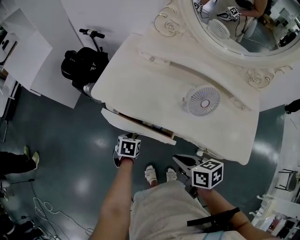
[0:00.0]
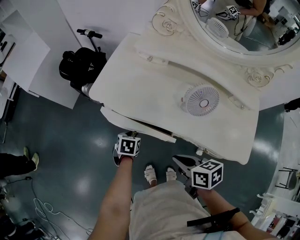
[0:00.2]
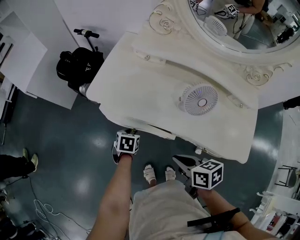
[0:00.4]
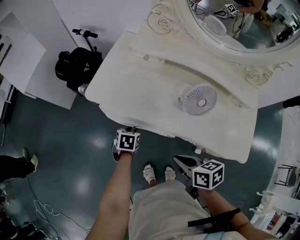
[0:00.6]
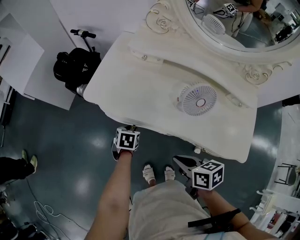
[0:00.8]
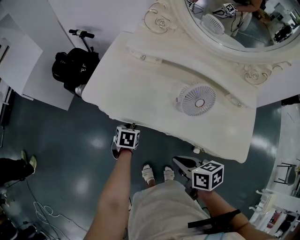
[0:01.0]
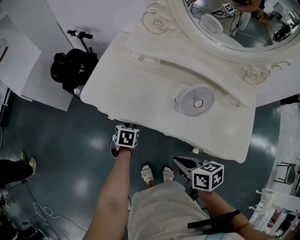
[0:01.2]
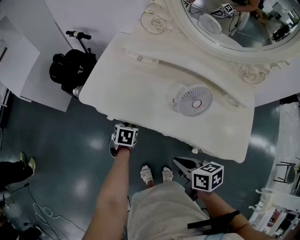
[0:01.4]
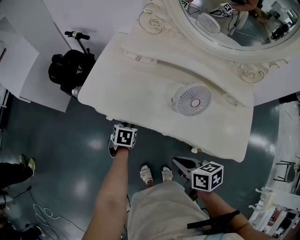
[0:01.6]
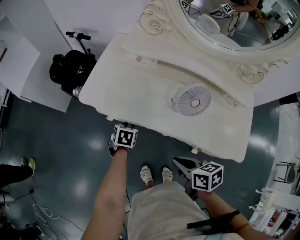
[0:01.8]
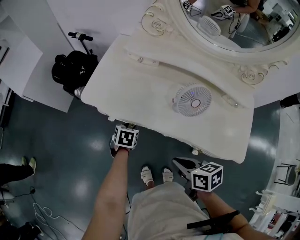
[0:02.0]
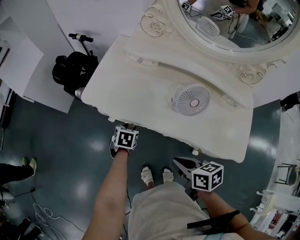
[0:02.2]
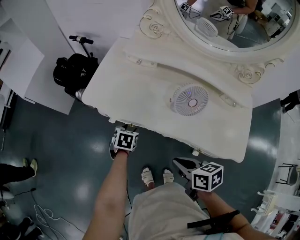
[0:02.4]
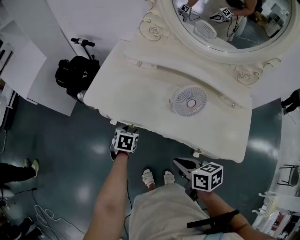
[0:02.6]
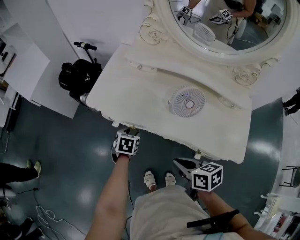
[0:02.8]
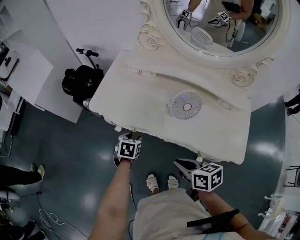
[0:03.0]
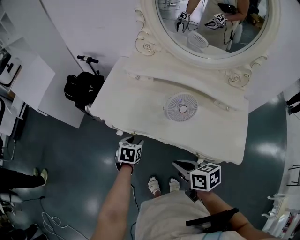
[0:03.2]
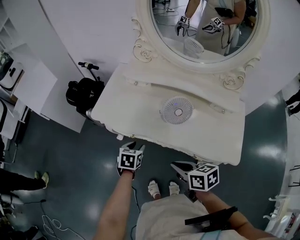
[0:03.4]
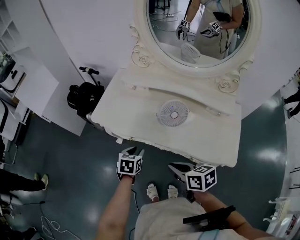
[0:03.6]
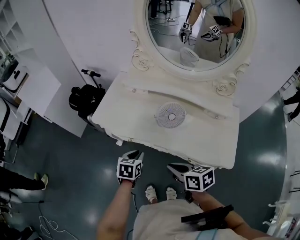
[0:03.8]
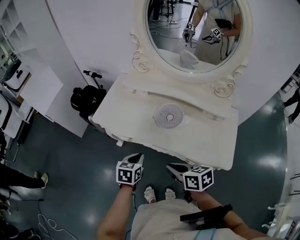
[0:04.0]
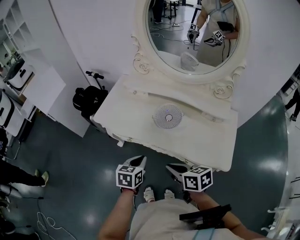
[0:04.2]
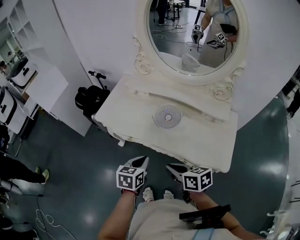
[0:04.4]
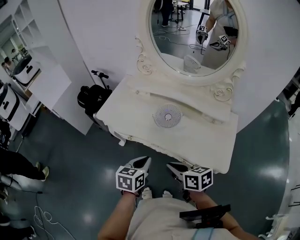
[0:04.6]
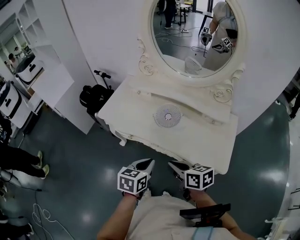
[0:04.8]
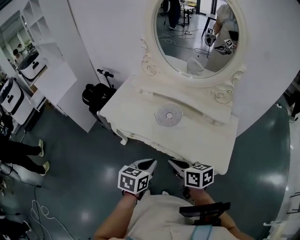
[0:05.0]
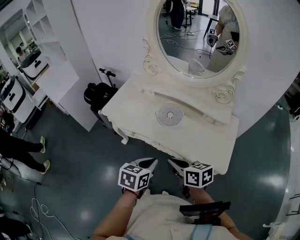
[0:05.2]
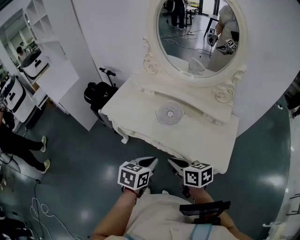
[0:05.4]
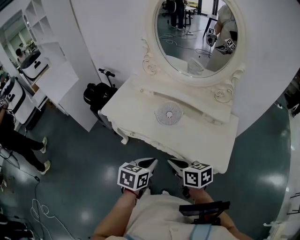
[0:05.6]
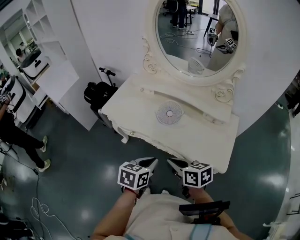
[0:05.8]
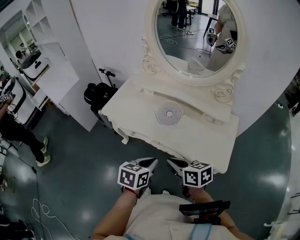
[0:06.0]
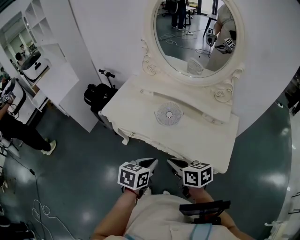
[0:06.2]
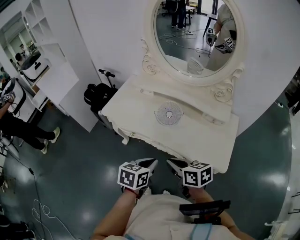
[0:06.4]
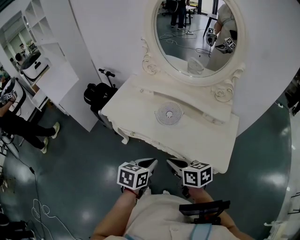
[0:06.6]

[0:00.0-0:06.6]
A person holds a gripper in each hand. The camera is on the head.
0:00.0 to 0:01.6: The left gripper is displaced forward by approximately 5 cm.
0:01.6 to 0:03.2: The right gripper moves upward, about 5 cm, while the left gripper is displaced upward and backward by approximately 10 cm.
0:03.2 to 0:05.0: The right gripper shifts about 10 cm upward, to the right and backward; the left gripper travels backward, upward and to the right by approximately 30 cm, changes its angle by roughly 20 degrees, and closes.
0:05.0 to 0:06.6: The two grippers keep their place.

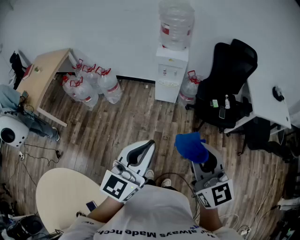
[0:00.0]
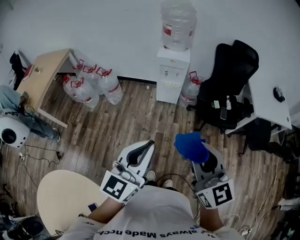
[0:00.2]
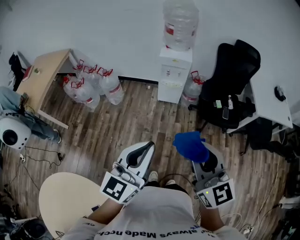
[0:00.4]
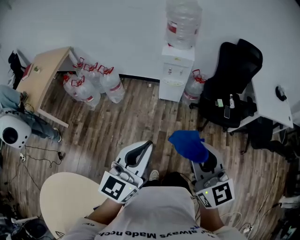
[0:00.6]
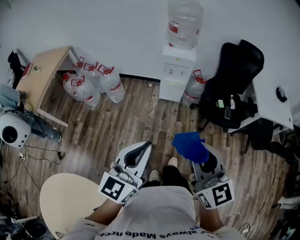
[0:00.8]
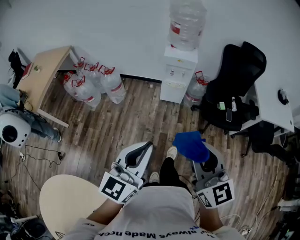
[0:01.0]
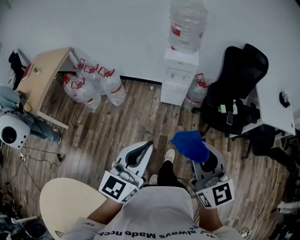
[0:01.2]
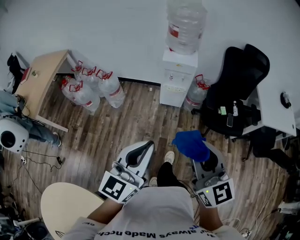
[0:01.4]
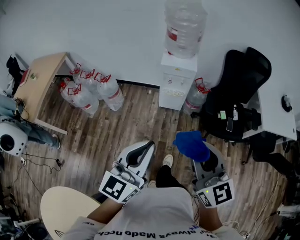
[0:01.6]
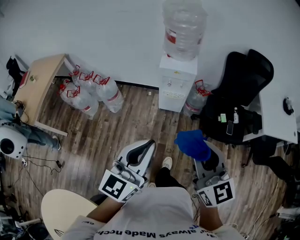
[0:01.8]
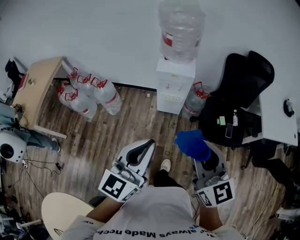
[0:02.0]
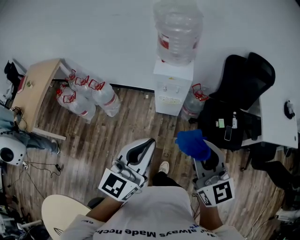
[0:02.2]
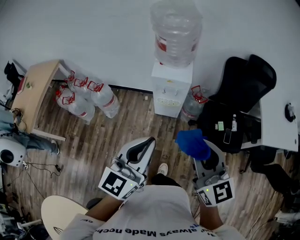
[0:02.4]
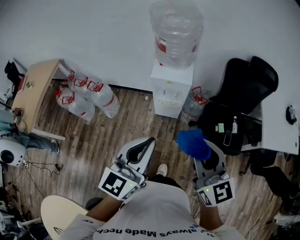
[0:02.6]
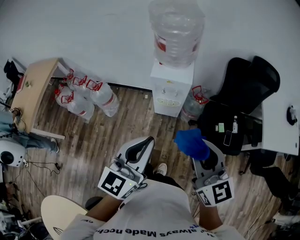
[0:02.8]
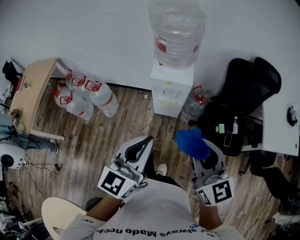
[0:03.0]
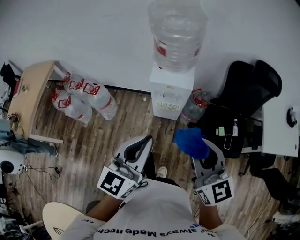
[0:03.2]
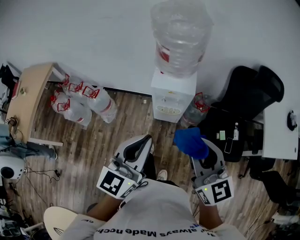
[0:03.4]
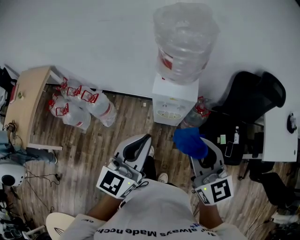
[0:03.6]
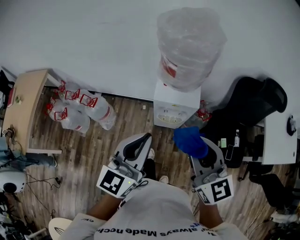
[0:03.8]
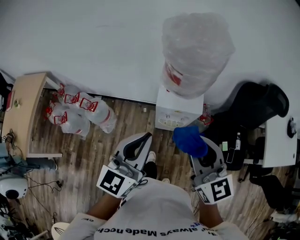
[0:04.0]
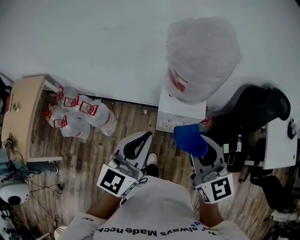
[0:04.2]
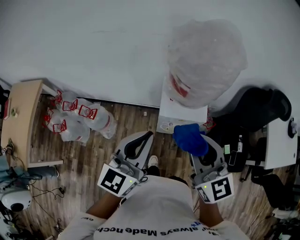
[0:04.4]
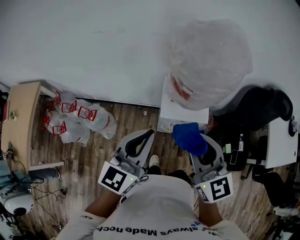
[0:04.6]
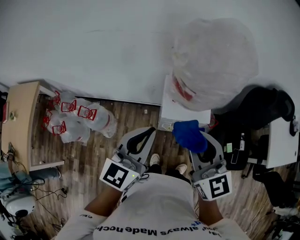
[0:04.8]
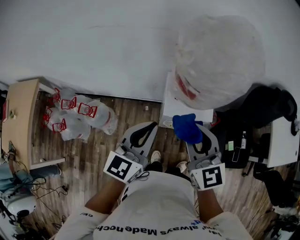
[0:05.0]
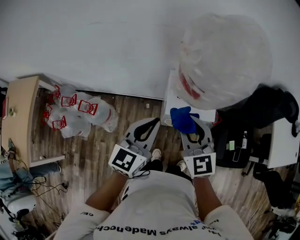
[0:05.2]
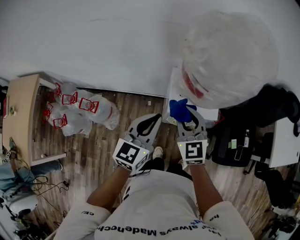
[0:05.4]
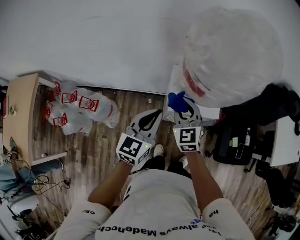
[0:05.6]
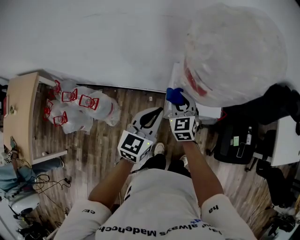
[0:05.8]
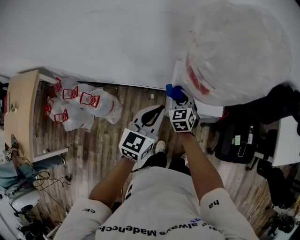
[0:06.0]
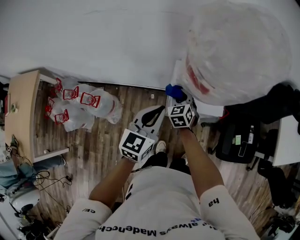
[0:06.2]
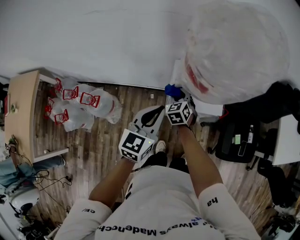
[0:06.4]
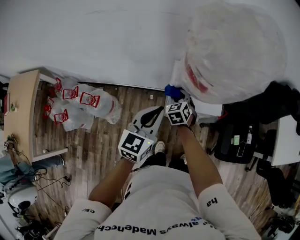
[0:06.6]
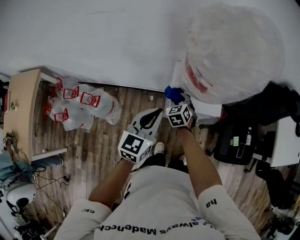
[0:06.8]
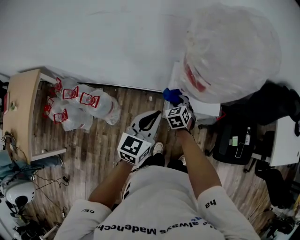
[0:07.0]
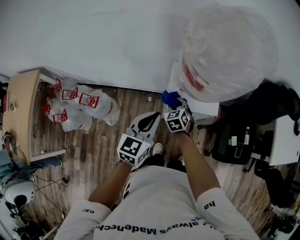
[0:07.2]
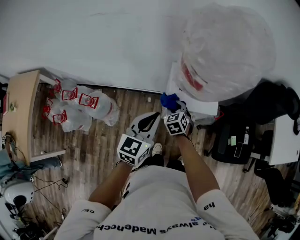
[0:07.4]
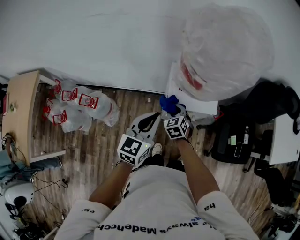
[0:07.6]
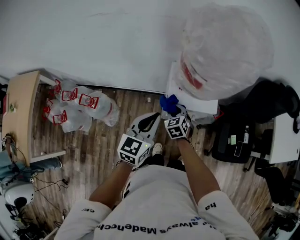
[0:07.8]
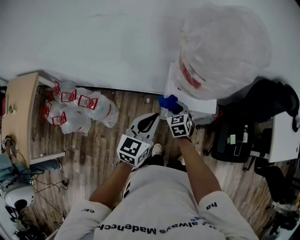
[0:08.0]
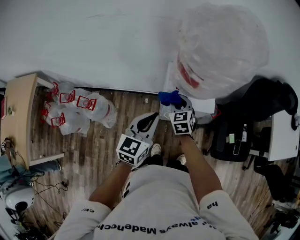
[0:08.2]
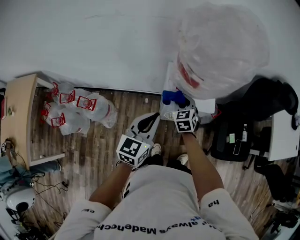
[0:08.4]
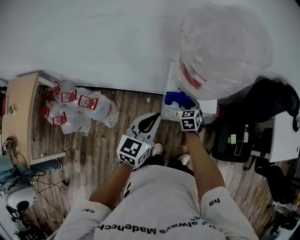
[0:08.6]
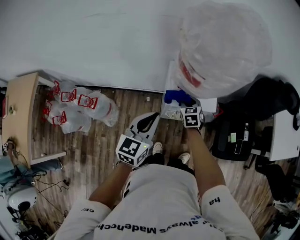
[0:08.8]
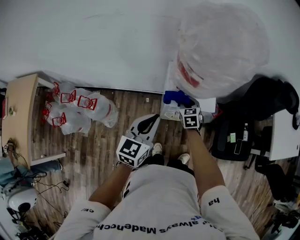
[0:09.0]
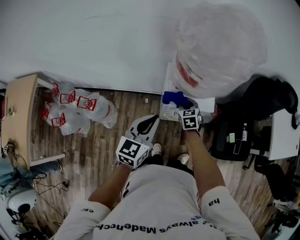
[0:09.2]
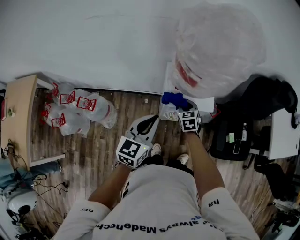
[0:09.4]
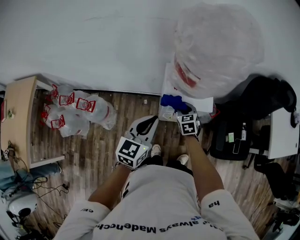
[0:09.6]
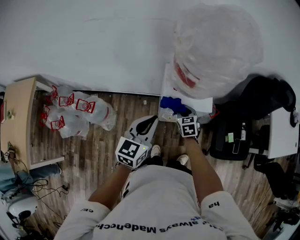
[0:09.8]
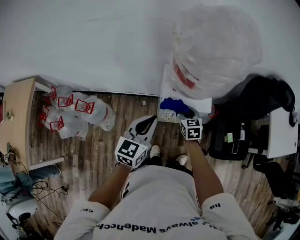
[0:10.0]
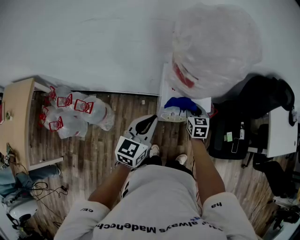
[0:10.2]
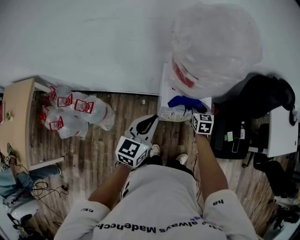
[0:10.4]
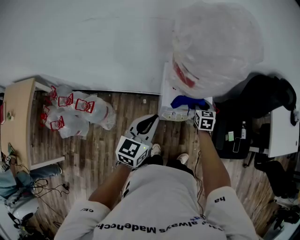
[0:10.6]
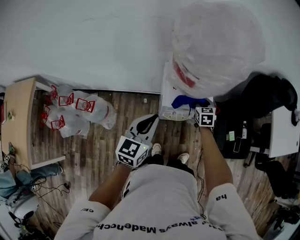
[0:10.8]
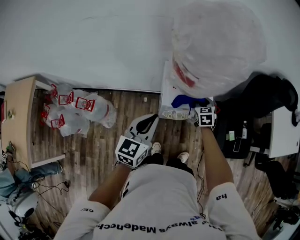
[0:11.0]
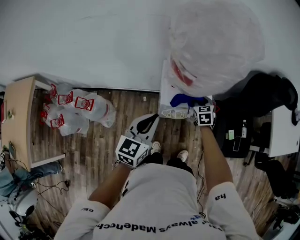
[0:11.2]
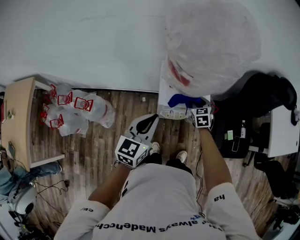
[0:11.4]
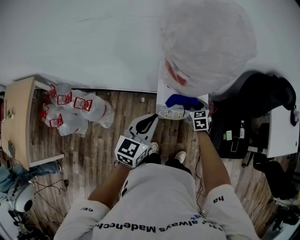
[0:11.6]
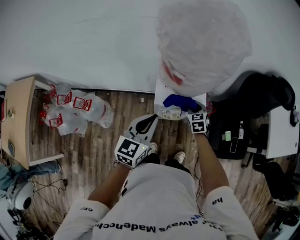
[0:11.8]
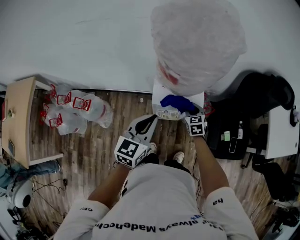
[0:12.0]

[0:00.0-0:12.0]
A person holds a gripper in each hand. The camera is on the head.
0:00.0 to 0:01.6: The grippers both shift forward by some 15 cm.
0:01.6 to 0:03.0: The two grippers go roughly 20 cm forward.
0:03.0 to 0:04.4: The two grippers go about 30 cm forward and to the left.
0:04.4 to 0:06.0: The right gripper moves downward and forward, approximately 40 cm, and changes its angle by approximately 30 degrees, while the left gripper travels downward and forward by roughly 20 cm.
0:06.0 to 0:07.6: The right gripper is displaced backward and downward by some 10 cm.
0:07.6 to 0:09.0: The right gripper heads to the right and forward, covering about 10 cm, and travels upward and back again, about 5 cm each way.
0:09.0 to 0:10.4: The right gripper shifts about 10 cm to the right.
0:10.4 to 0:12.0: The left gripper goes roughly 5 cm to the right.

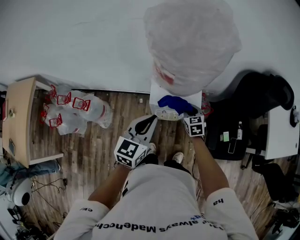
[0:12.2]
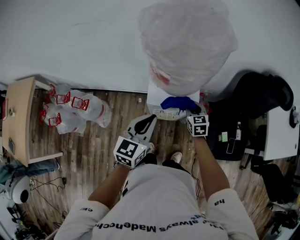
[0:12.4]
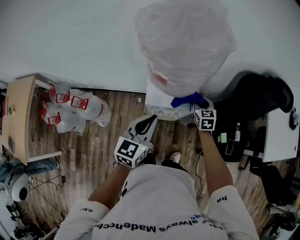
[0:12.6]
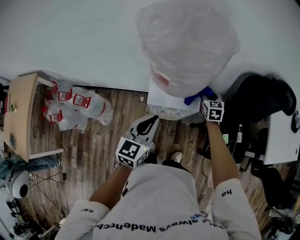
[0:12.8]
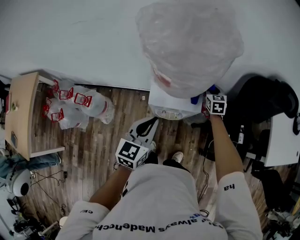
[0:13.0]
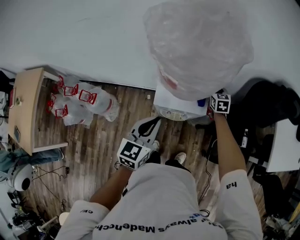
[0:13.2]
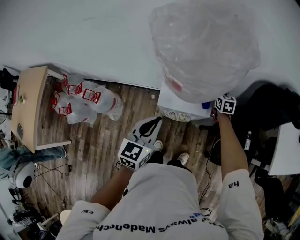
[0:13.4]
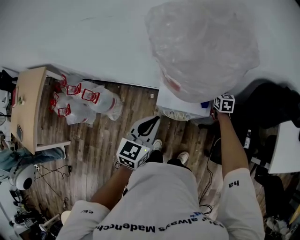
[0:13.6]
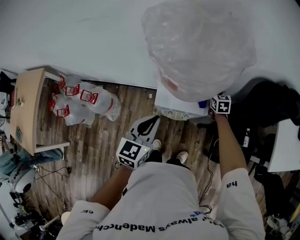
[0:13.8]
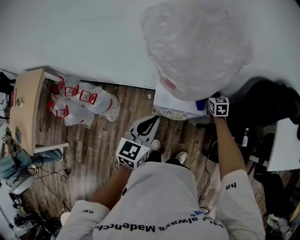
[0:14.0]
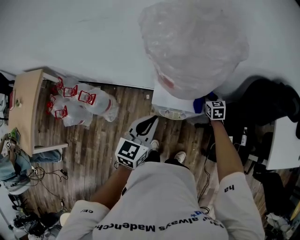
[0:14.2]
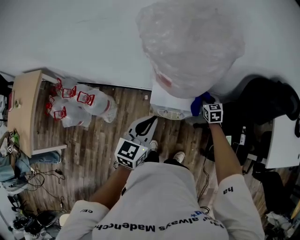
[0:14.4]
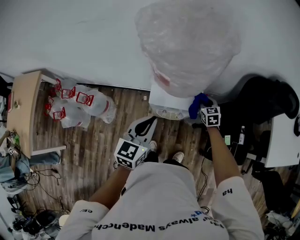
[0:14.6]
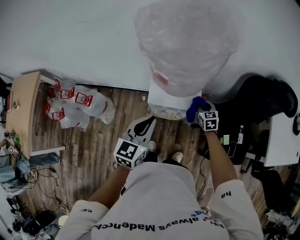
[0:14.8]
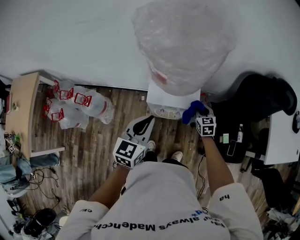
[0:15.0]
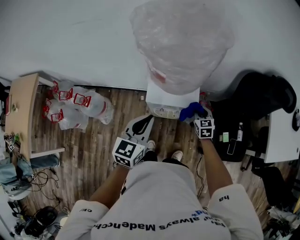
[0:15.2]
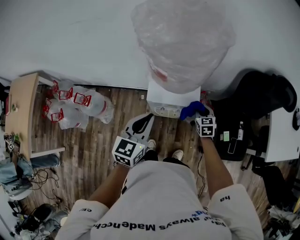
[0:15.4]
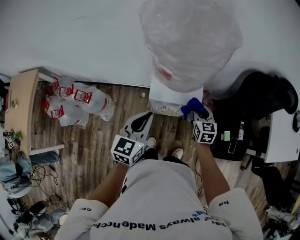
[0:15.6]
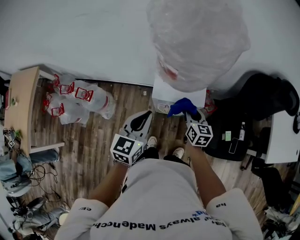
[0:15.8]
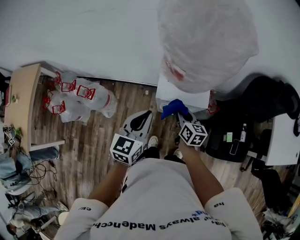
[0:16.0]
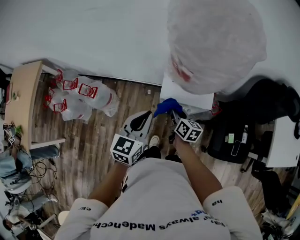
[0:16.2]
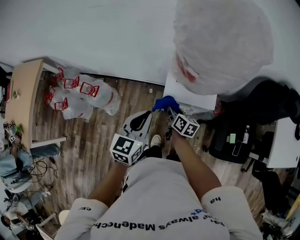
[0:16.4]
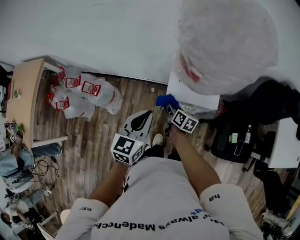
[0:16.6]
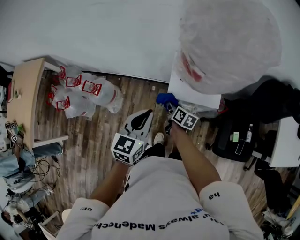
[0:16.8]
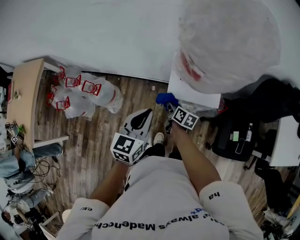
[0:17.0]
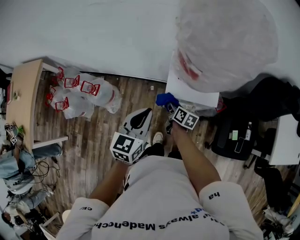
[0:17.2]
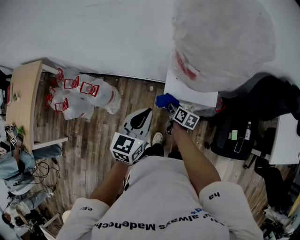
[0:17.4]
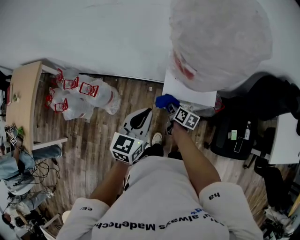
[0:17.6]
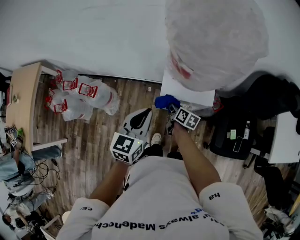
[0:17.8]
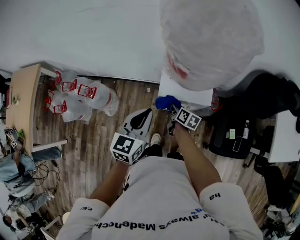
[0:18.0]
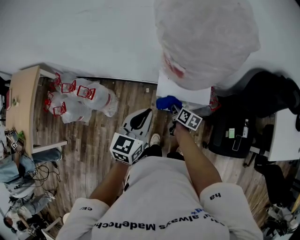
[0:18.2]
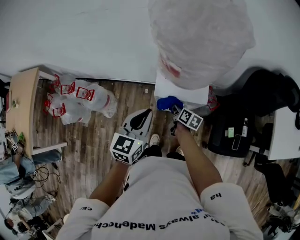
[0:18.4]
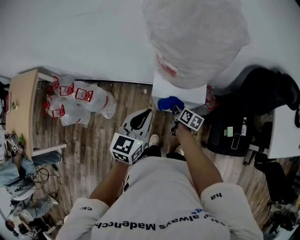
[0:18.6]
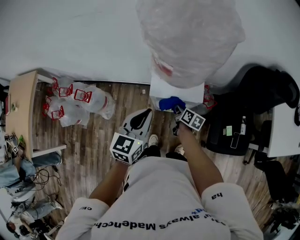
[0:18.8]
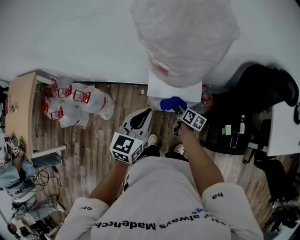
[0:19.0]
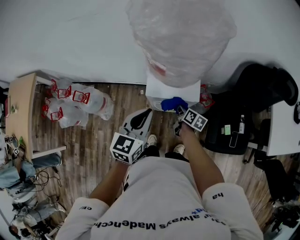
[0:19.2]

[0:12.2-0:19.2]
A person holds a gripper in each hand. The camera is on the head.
0:12.2 to 0:13.6: The right gripper heads forward and to the right, covering roughly 20 cm.
0:13.6 to 0:15.0: The right gripper moves backward, some 15 cm.
0:15.0 to 0:16.4: The right gripper is displaced to the left by about 25 cm, and twists about 50 degrees clockwise, seen from behind, while the left gripper is displaced to the left by roughly 10 cm.
0:16.4 to 0:17.8: The right gripper moves roughly 5 cm.
0:17.8 to 0:19.2: The right gripper travels to the right by some 10 cm. Meanwhile the left gripper shifts approximately 5 cm to the right.
